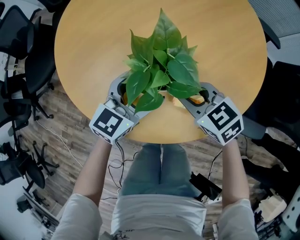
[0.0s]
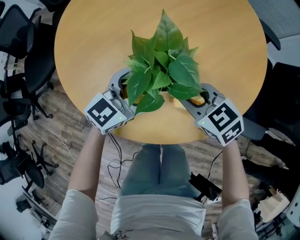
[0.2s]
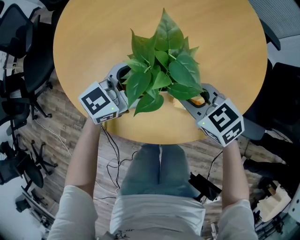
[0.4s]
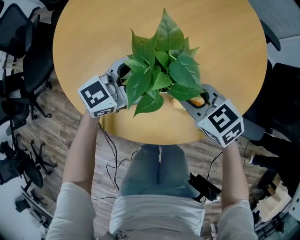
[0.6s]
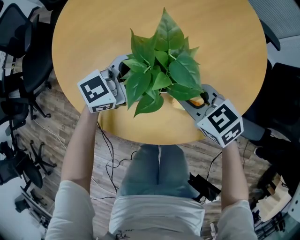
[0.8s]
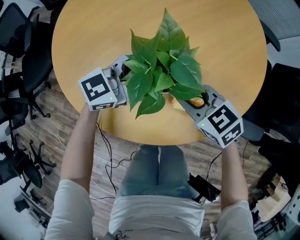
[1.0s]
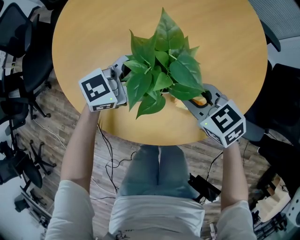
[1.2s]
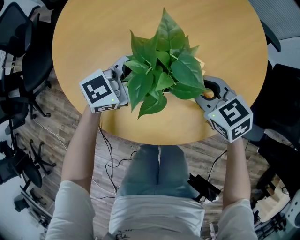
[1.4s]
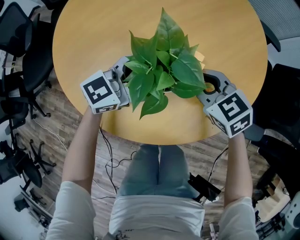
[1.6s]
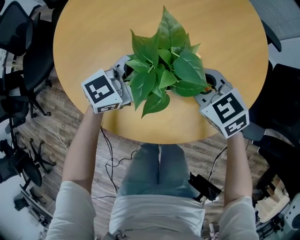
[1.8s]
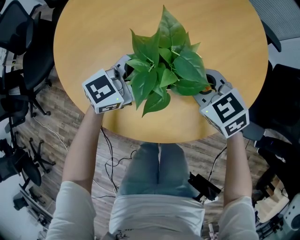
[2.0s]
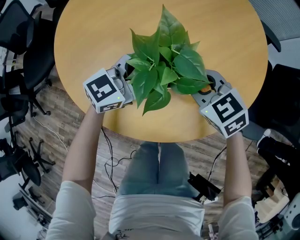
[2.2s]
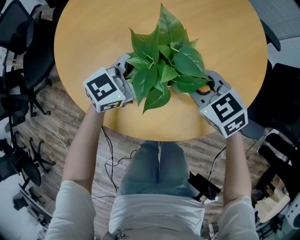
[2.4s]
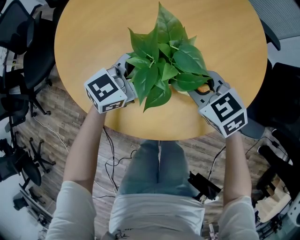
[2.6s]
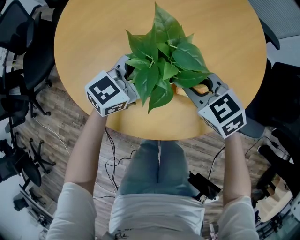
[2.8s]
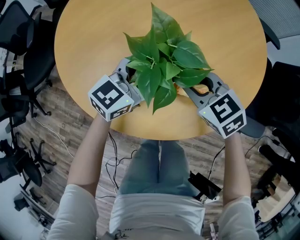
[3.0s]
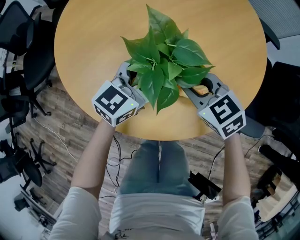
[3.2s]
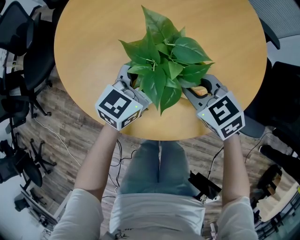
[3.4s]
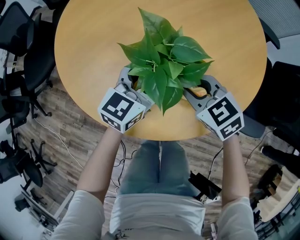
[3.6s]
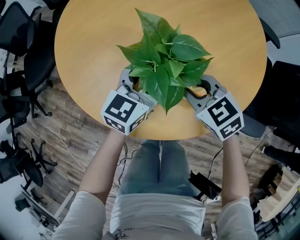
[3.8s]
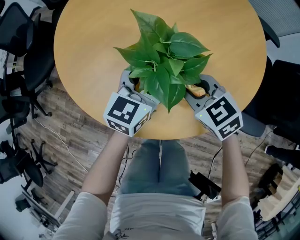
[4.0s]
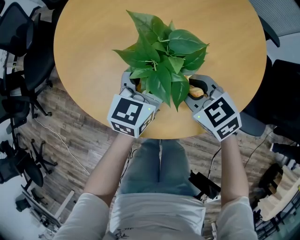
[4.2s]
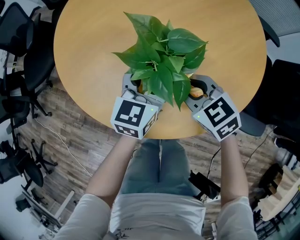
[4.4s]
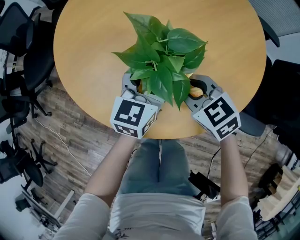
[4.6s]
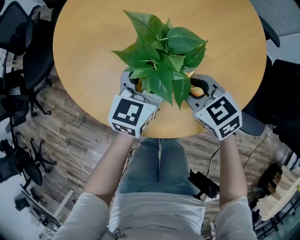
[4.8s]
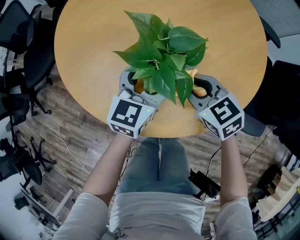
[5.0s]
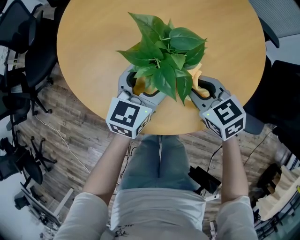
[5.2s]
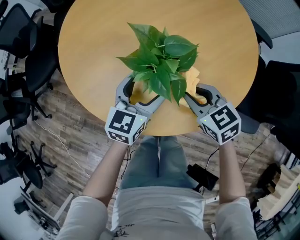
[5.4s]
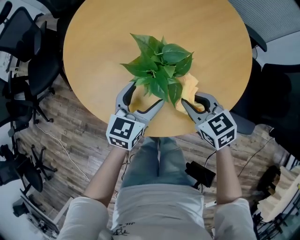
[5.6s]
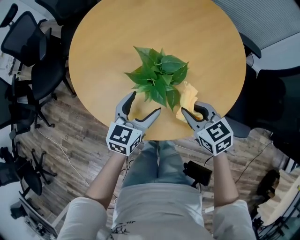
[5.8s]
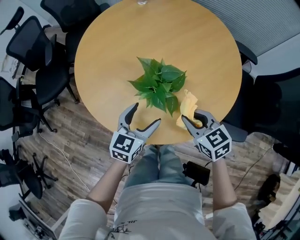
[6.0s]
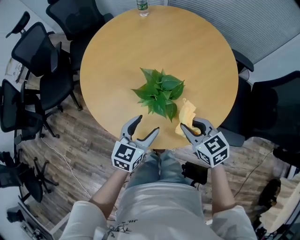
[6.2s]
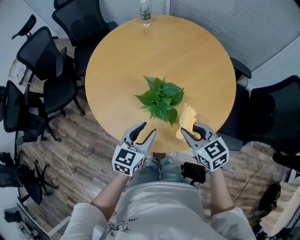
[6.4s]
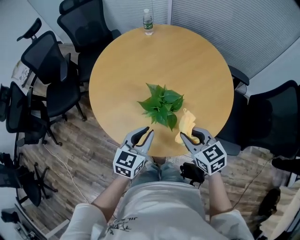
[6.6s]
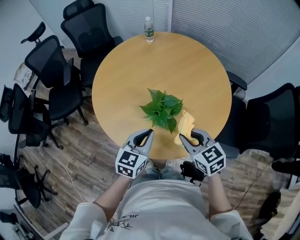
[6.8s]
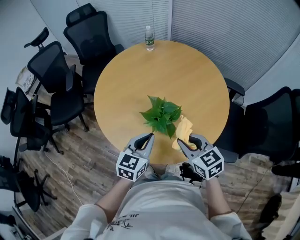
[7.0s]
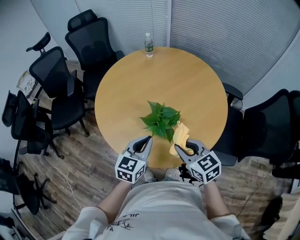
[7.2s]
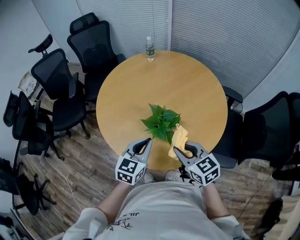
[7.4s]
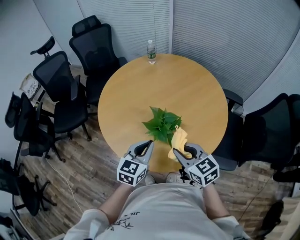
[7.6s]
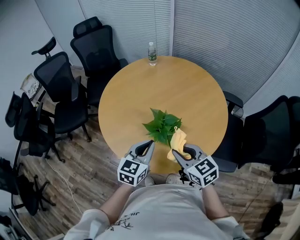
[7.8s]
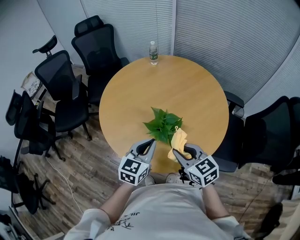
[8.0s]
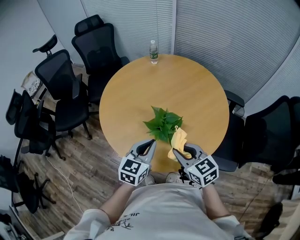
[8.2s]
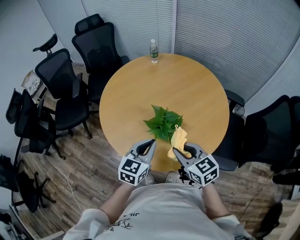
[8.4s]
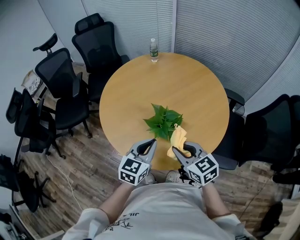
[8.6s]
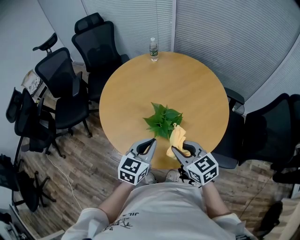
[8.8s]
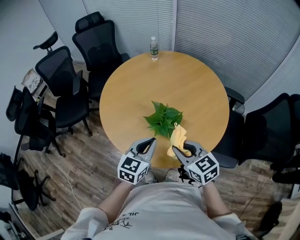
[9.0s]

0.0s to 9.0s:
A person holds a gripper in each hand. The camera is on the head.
0.0s to 1.6s: The left gripper rotates approximately 30 degrees. Meanwhile the right gripper shifts by some 5 cm.
1.6s to 3.0s: The grippers stay close to where they were, moving slightly.
3.0s to 4.4s: The left gripper rotates approximately 30 degrees.
4.4s to 6.0s: The right gripper travels upward and backward by roughly 10 cm. The left gripper heads backward, to the left and upward, covering some 10 cm.
6.0s to 7.6s: Both grippers move upward, some 15 cm. The left gripper closes its fingers.
7.6s to 9.0s: The grippers move only a little.

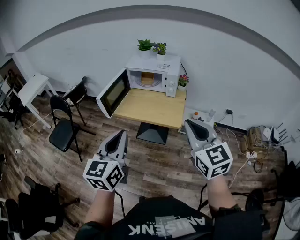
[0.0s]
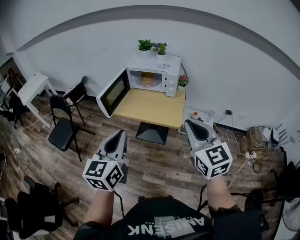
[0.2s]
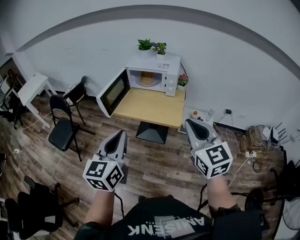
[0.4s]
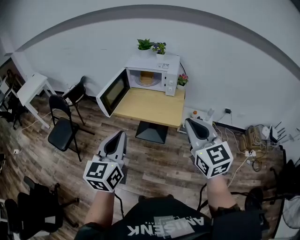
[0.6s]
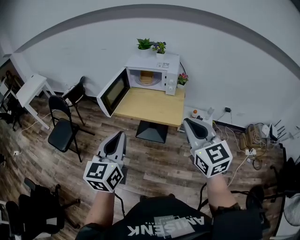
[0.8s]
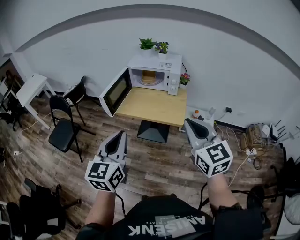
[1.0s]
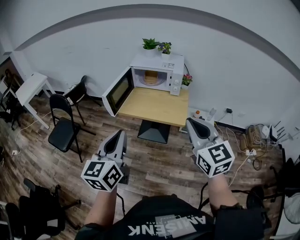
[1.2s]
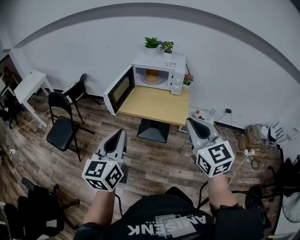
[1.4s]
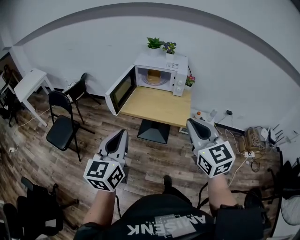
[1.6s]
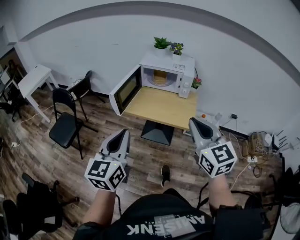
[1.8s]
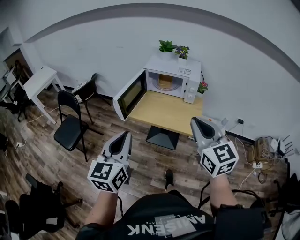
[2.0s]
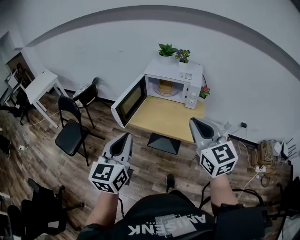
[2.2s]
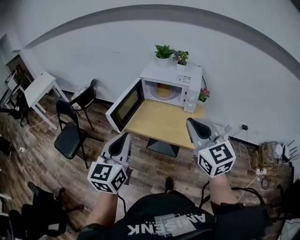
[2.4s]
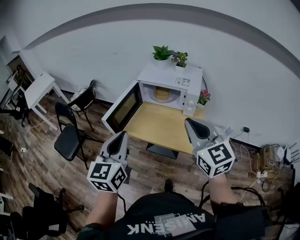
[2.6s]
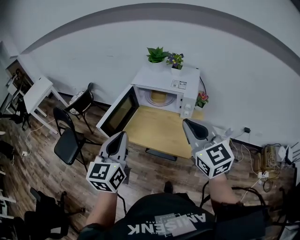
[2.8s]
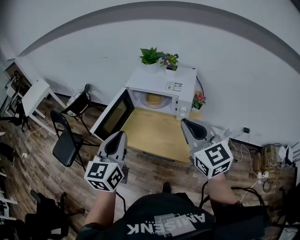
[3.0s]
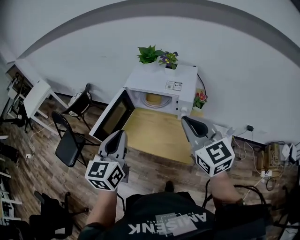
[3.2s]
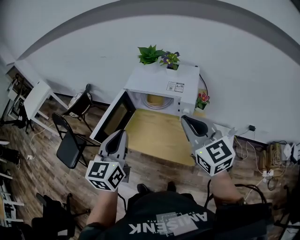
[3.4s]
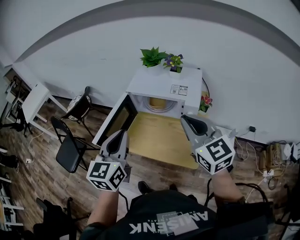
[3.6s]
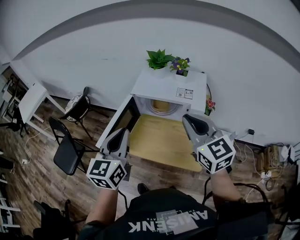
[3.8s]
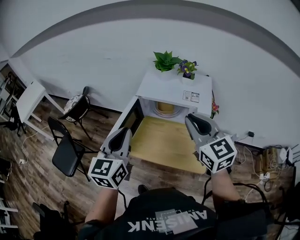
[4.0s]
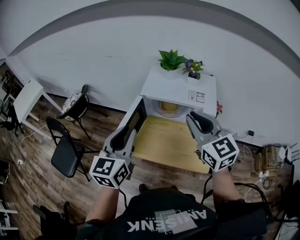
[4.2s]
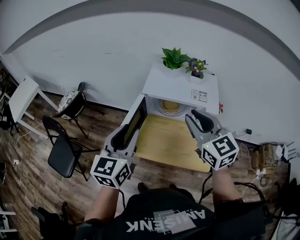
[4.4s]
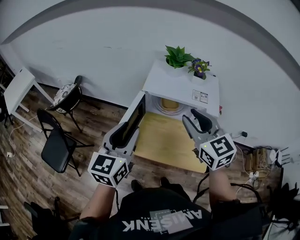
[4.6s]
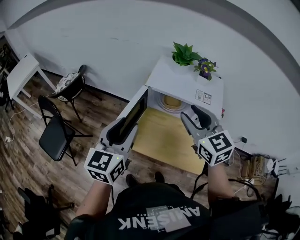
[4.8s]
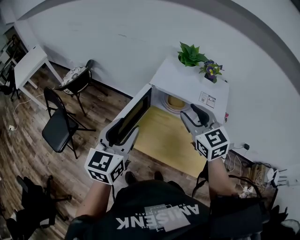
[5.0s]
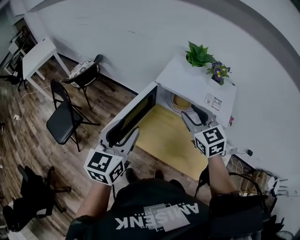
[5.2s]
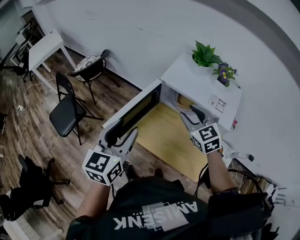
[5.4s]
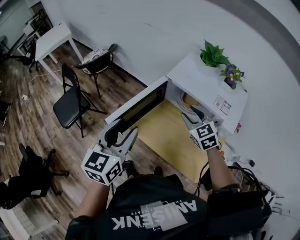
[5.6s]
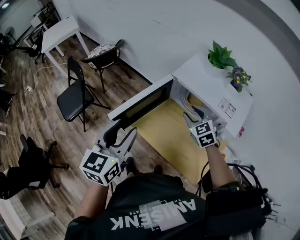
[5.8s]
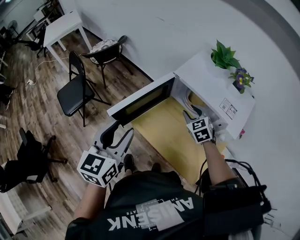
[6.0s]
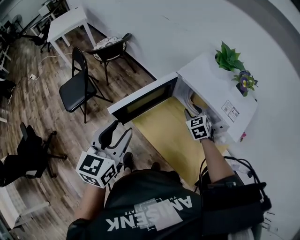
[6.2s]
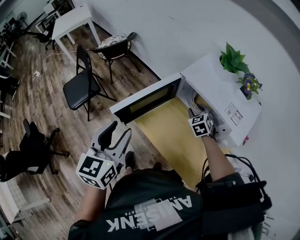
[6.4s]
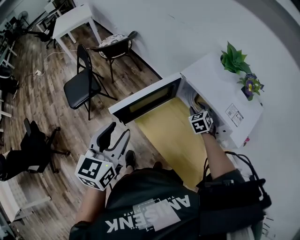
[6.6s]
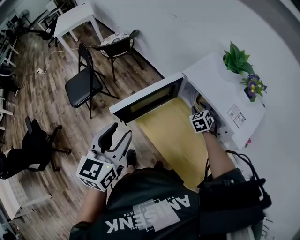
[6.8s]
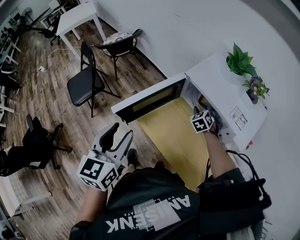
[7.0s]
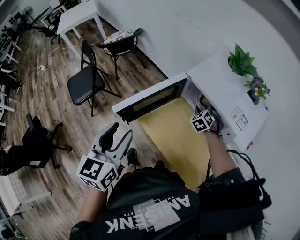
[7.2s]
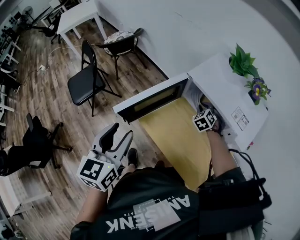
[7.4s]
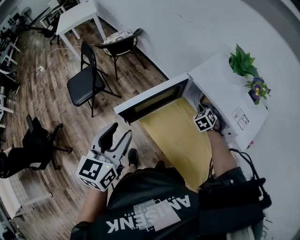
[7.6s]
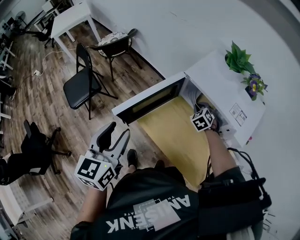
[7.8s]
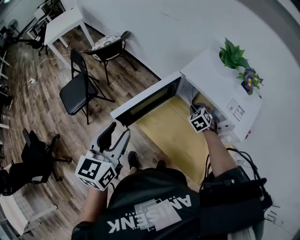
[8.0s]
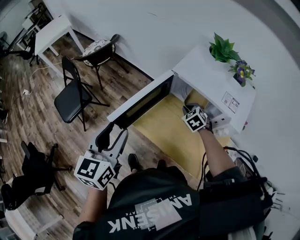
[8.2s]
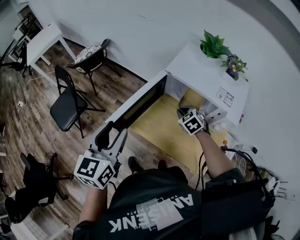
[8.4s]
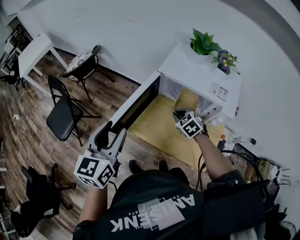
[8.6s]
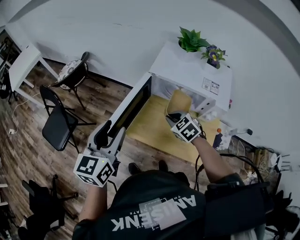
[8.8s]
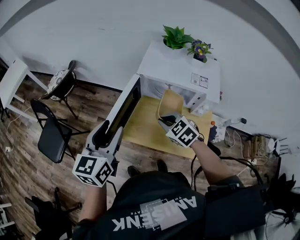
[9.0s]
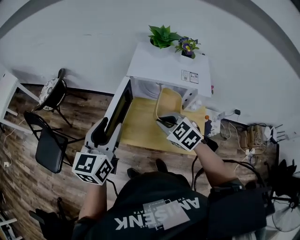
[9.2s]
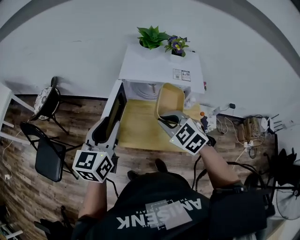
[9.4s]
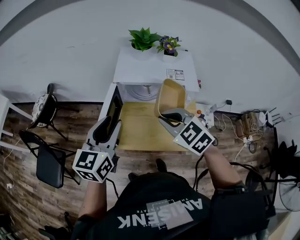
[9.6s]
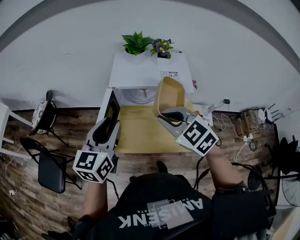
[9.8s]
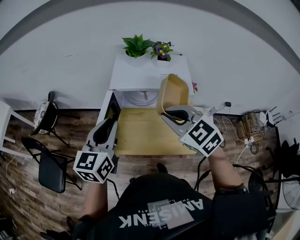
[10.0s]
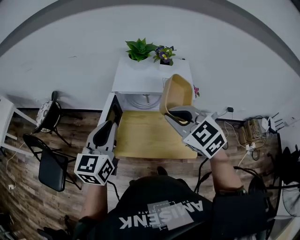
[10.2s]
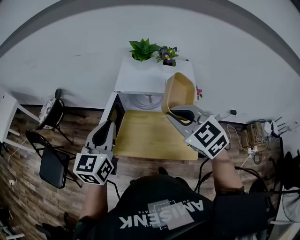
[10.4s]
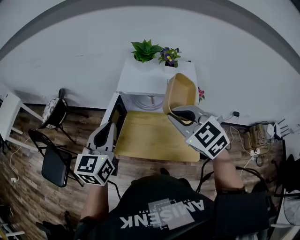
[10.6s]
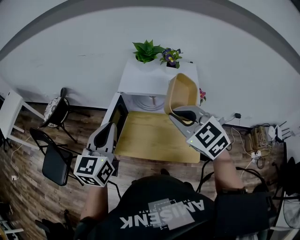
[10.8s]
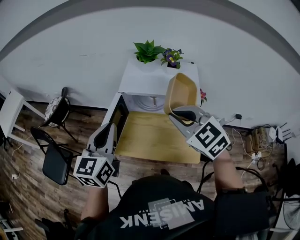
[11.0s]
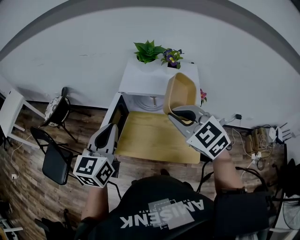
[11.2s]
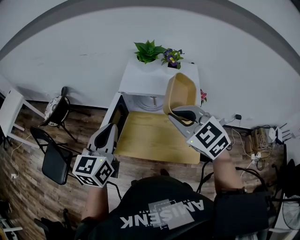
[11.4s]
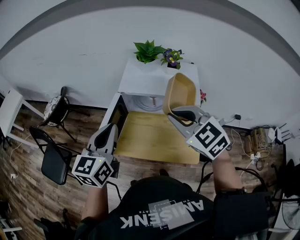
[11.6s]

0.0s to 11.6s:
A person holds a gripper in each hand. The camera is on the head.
0.0s to 1.4s: Both grippers move to the left, approximately 10 cm.
1.4s to 2.8s: Both grippers move forward, about 25 cm.
2.8s to 4.4s: The left gripper is displaced forward by approximately 20 cm, and opens up; the right gripper heads forward and to the left, covering approximately 20 cm.
4.4s to 5.8s: The left gripper travels downward by some 5 cm, and changes its angle by approximately 20 degrees. Meanwhile the right gripper shifts about 25 cm downward and forward, turns by approximately 40 degrees, and opens.
5.8s to 7.2s: The right gripper moves downward and forward, approximately 15 cm, and turns by approximately 20 degrees.
7.2s to 8.8s: The left gripper shifts about 5 cm forward, and changes its angle by roughly 20 degrees, while the right gripper goes approximately 20 cm backward, upward and to the left, turns by about 20 degrees, and closes its fingers.
8.8s to 10.2s: The right gripper heads upward, covering approximately 25 cm, and changes its angle by roughly 20 degrees. The left gripper travels to the right by some 10 cm, and closes.
10.2s to 11.6s: There are only small adjustments of the grippers.

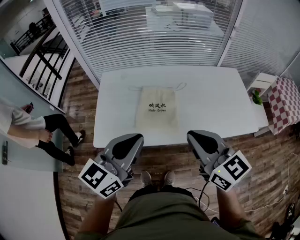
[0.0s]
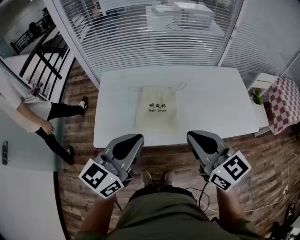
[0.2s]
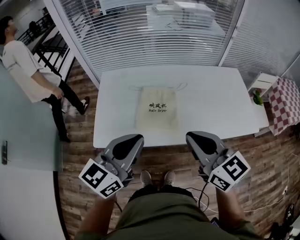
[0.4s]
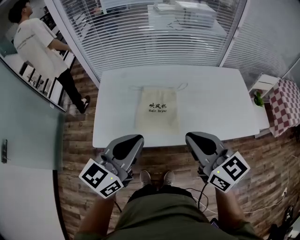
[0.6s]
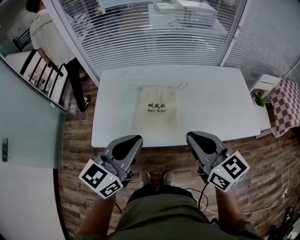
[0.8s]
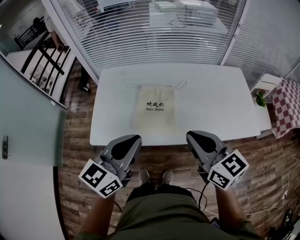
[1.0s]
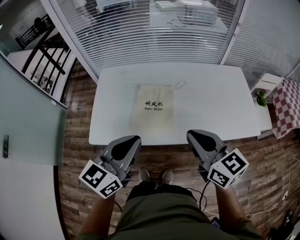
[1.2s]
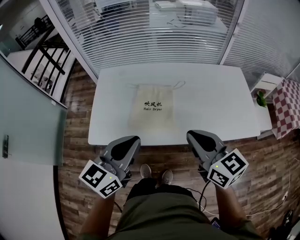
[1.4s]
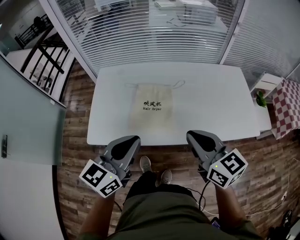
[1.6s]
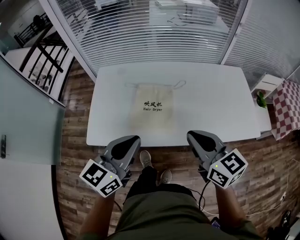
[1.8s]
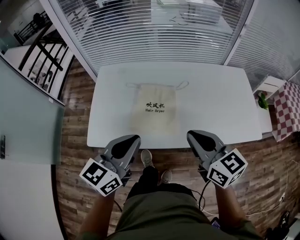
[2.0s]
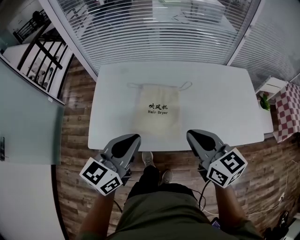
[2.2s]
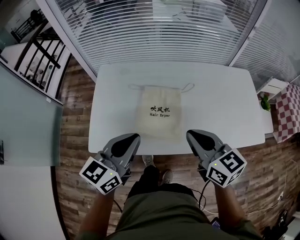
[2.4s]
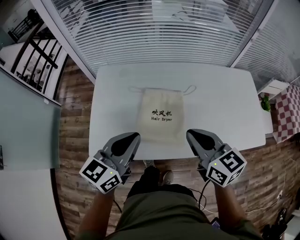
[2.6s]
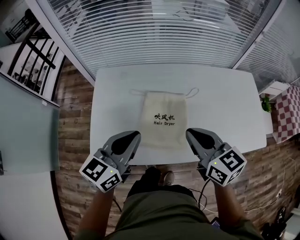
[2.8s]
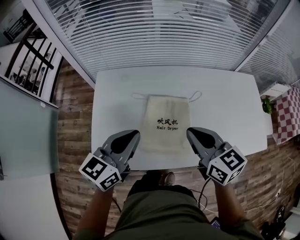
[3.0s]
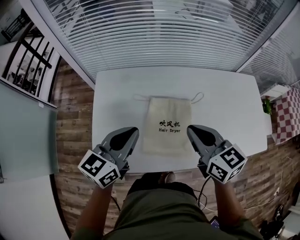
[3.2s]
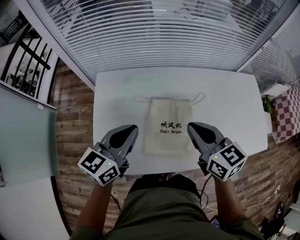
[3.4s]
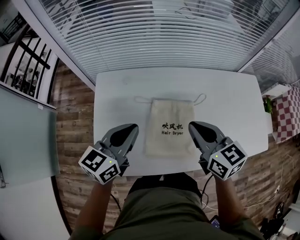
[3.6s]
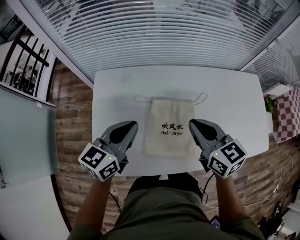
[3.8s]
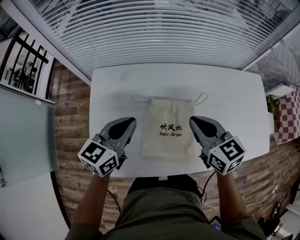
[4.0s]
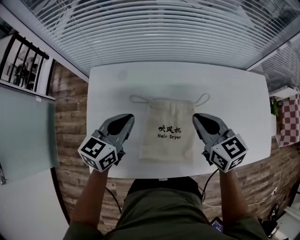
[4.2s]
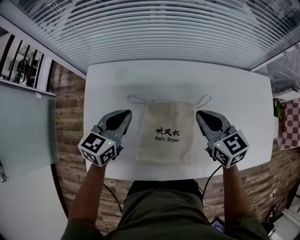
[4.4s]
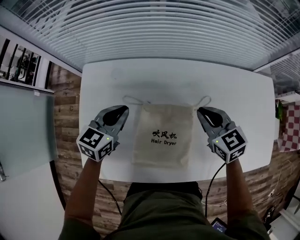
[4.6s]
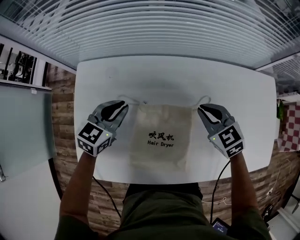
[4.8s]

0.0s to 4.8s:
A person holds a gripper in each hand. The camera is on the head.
0.0s to 1.6s: The right gripper moves downward and to the right, some 10 cm; the left gripper moves downward, roughly 5 cm.
1.6s to 3.2s: The two grippers go some 25 cm forward and to the left.
3.2s to 4.8s: The right gripper is displaced downward, forward and to the right by about 25 cm, and turns by approximately 30 degrees. Meanwhile the left gripper goes roughly 25 cm forward and downward, and changes its angle by roughly 20 degrees.
